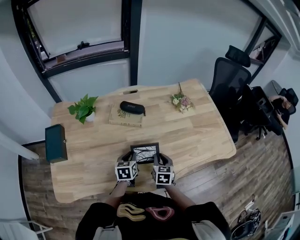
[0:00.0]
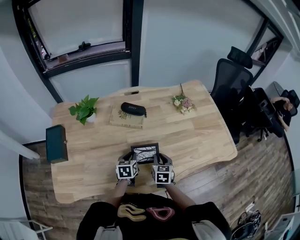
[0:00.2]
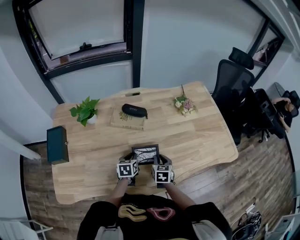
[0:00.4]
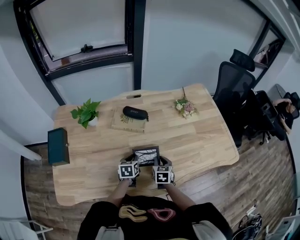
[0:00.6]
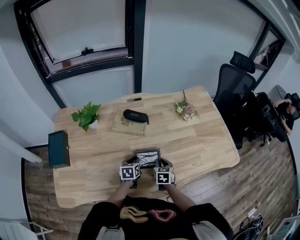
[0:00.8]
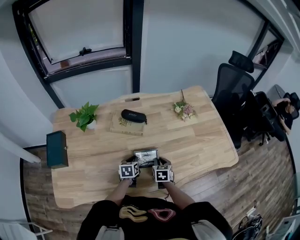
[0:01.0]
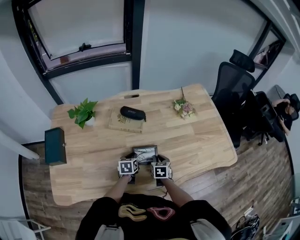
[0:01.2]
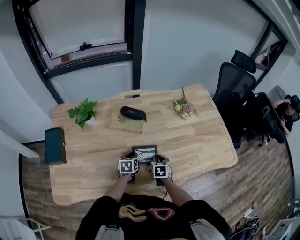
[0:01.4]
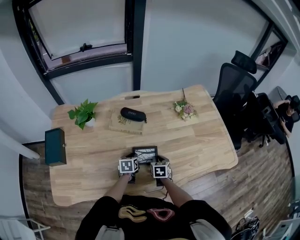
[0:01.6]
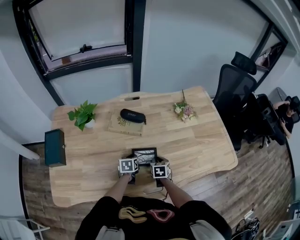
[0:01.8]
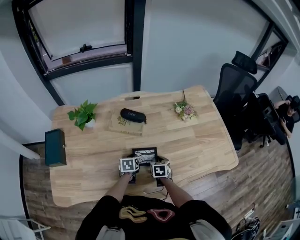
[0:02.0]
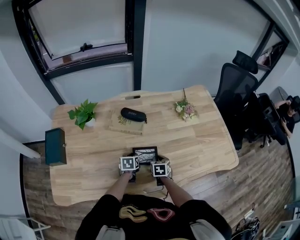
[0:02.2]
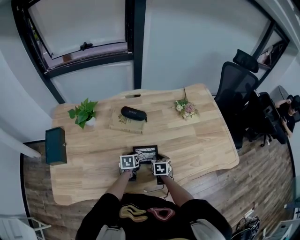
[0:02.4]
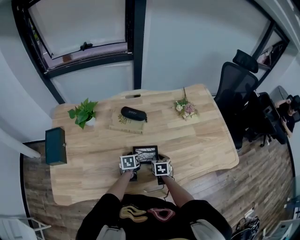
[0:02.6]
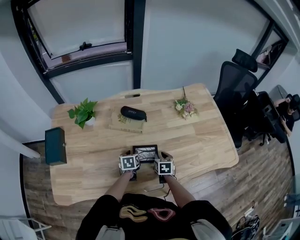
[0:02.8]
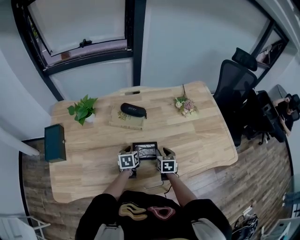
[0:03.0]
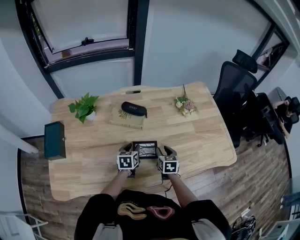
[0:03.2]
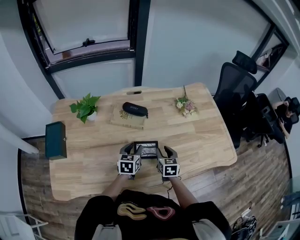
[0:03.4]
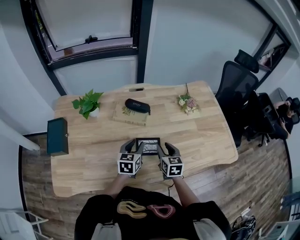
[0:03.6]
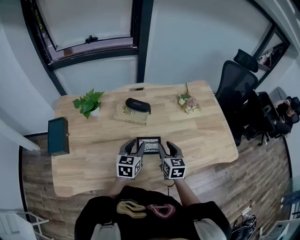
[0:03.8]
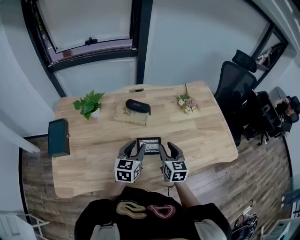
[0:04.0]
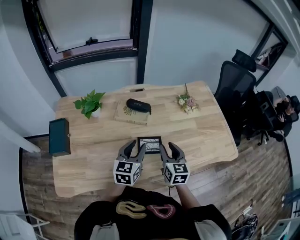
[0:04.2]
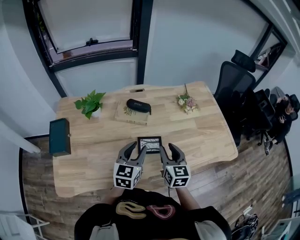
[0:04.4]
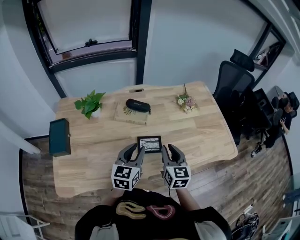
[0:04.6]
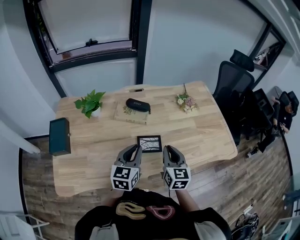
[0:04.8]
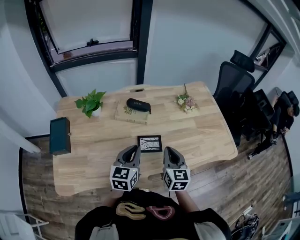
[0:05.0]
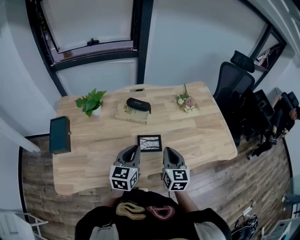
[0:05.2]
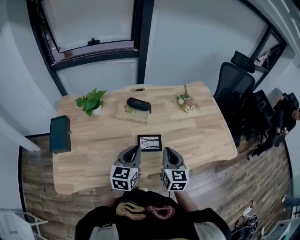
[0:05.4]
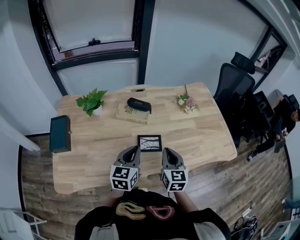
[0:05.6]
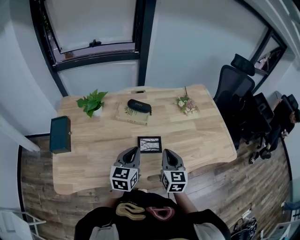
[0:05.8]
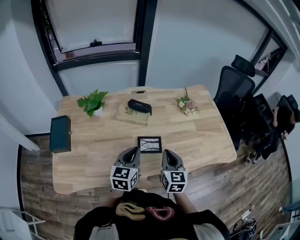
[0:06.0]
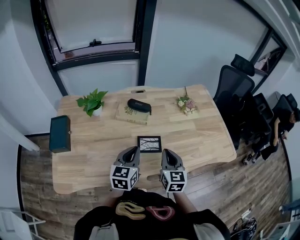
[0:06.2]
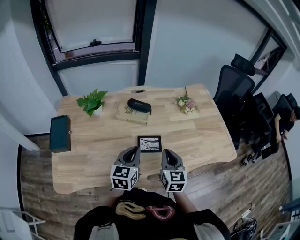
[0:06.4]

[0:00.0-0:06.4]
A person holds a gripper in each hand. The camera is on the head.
0:00.0 to 0:01.6: The grippers both shift downward and forward by roughly 10 cm.
0:01.6 to 0:03.2: Both grippers move upward, some 5 cm. The right gripper opens its fingers. Meanwhile the left gripper opens its fingers.
0:03.2 to 0:04.8: Both grippers move upward and backward, about 20 cm. The right gripper rotates about 20 degrees, and closes up. Meanwhile the left gripper rotates roughly 30 degrees, and closes its fingers.
0:04.8 to 0:06.4: There are only small adjustments of the grippers.

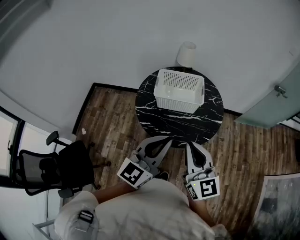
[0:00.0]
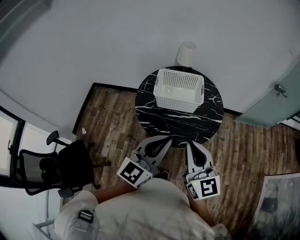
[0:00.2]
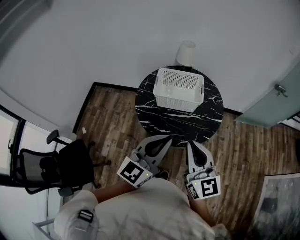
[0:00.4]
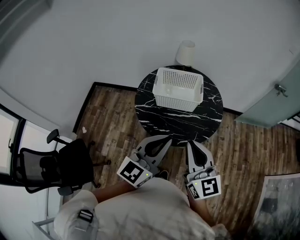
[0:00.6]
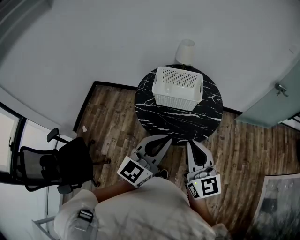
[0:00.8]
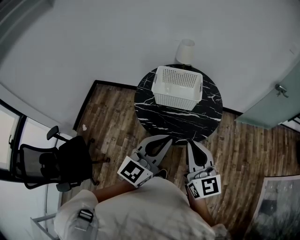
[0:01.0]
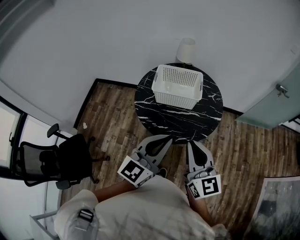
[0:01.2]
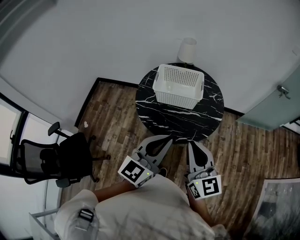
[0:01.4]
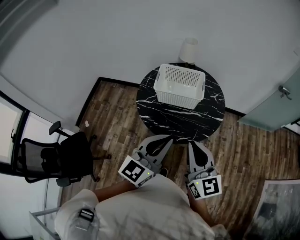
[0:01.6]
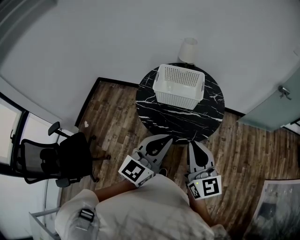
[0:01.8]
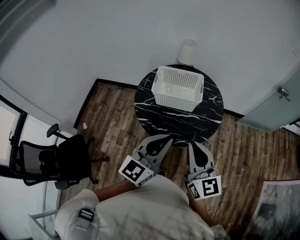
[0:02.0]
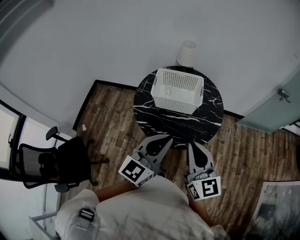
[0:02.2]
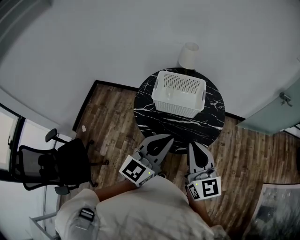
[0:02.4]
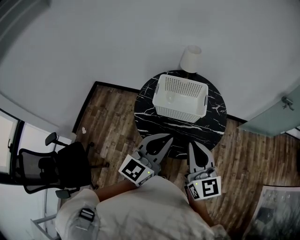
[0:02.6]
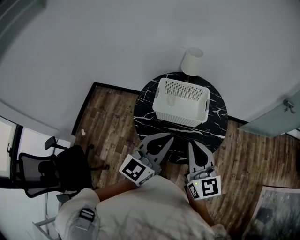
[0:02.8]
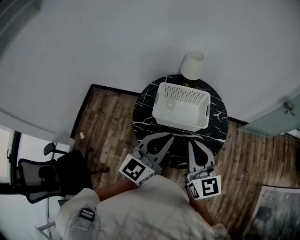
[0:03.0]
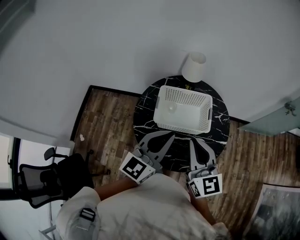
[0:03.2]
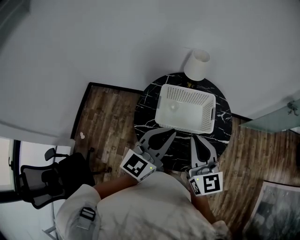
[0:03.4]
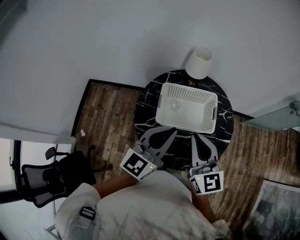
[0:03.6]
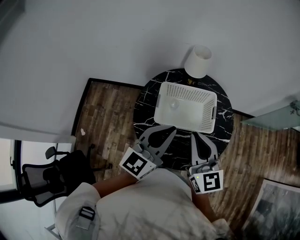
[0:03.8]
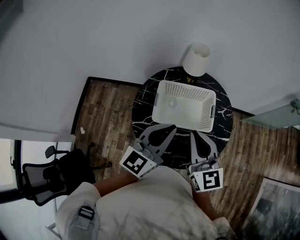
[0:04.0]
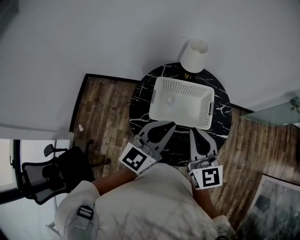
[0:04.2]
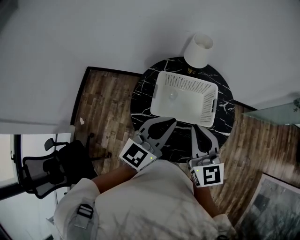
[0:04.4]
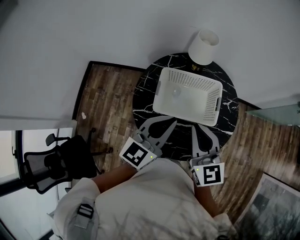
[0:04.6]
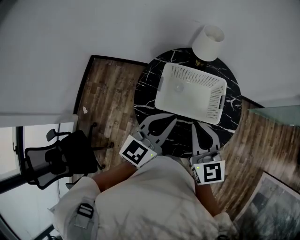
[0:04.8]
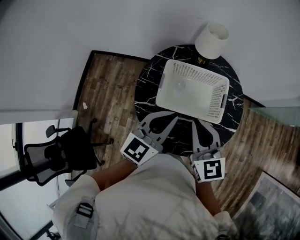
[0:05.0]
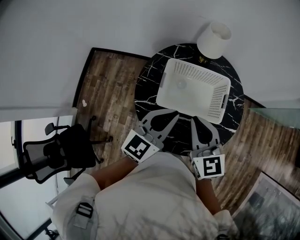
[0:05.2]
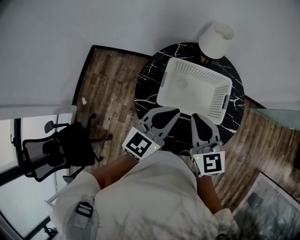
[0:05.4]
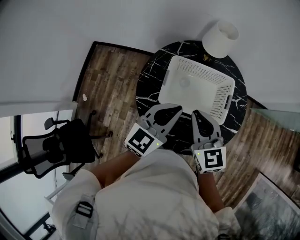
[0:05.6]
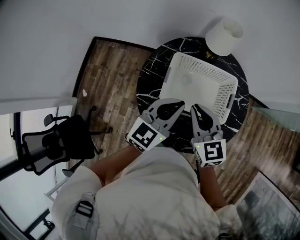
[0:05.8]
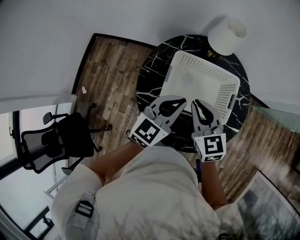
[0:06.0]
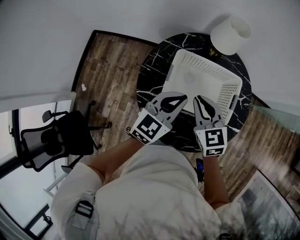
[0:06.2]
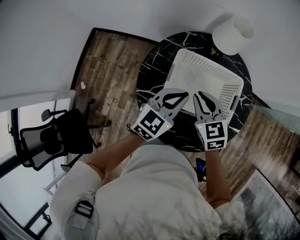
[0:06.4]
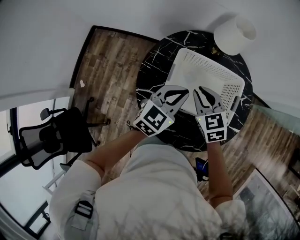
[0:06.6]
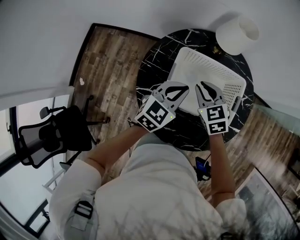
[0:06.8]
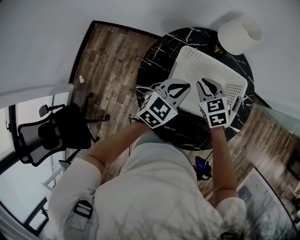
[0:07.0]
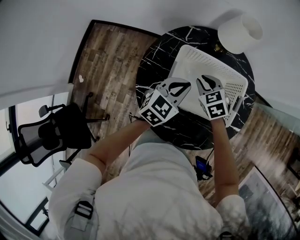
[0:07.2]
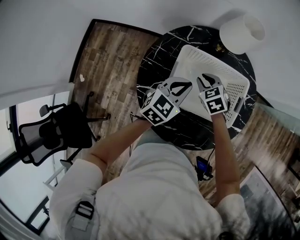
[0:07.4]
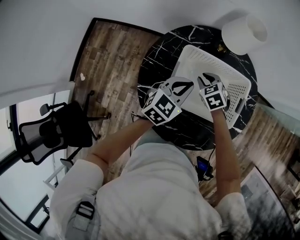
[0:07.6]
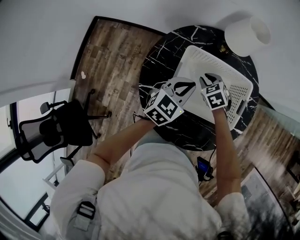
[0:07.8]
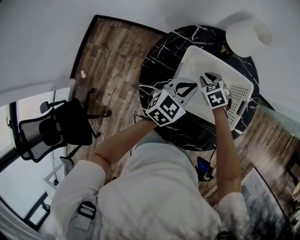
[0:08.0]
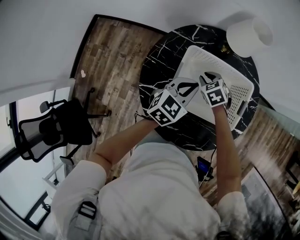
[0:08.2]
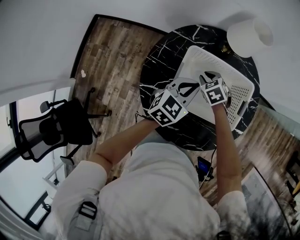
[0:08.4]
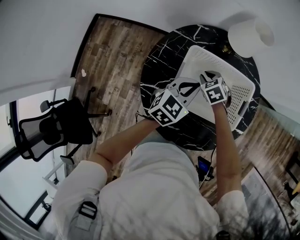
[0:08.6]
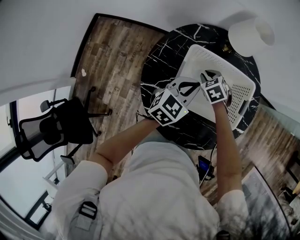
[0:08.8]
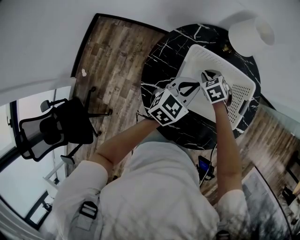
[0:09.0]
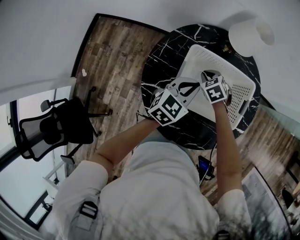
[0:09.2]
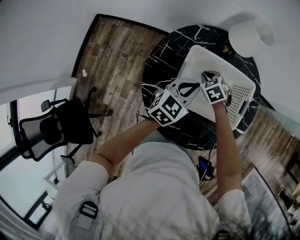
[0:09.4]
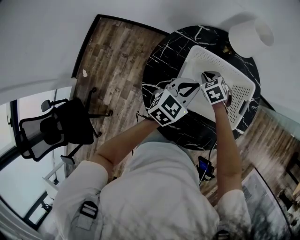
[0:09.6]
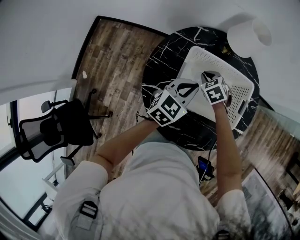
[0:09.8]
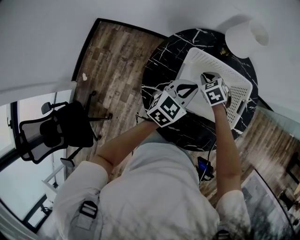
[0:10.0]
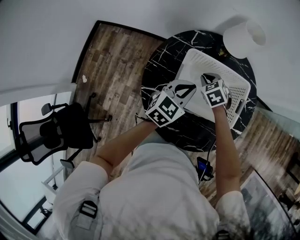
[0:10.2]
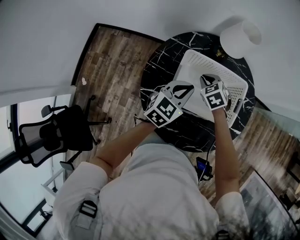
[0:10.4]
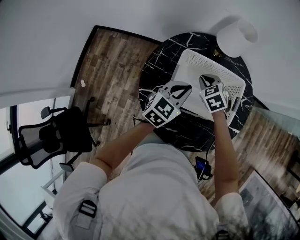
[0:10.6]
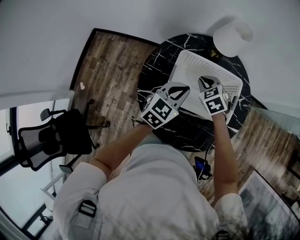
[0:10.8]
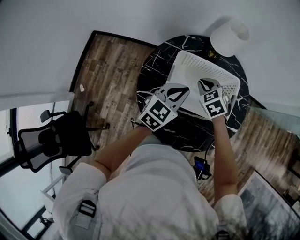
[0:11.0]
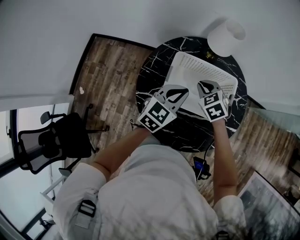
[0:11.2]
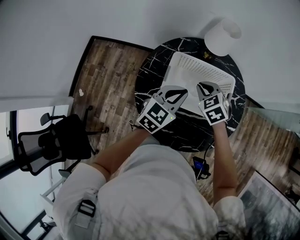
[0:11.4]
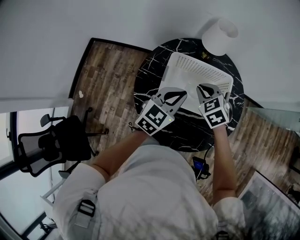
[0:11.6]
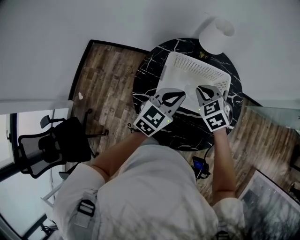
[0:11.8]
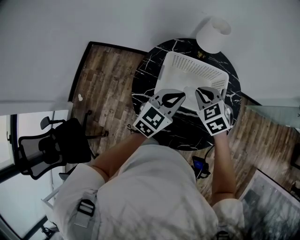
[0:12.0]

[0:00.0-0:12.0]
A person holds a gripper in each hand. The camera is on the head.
0:00.0 to 0:01.6: Both grippers travel together to the right, some 5 cm.
0:01.6 to 0:03.0: The grippers both shift forward by some 20 cm.
0:03.0 to 0:04.4: The grippers both shift forward by about 10 cm.
0:04.4 to 0:06.0: The left gripper moves downward and forward, roughly 15 cm. Meanwhile the right gripper moves downward, forward and to the left, roughly 15 cm, and rotates about 20 degrees.
0:06.0 to 0:07.6: The right gripper is displaced downward and forward by about 25 cm, and tilts its fingers roughly 30 degrees downward. Meanwhile the left gripper heads downward and forward, covering about 15 cm.
0:07.6 to 0:09.0: The grippers stay close to where they were, moving slightly.
0:09.0 to 0:10.4: The right gripper moves upward, approximately 5 cm.
0:10.4 to 0:12.0: The left gripper shifts approximately 10 cm upward and backward. Meanwhile the right gripper is displaced upward and backward by approximately 20 cm.

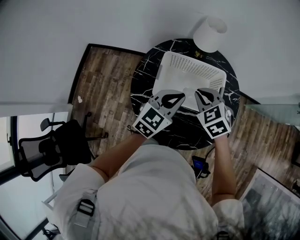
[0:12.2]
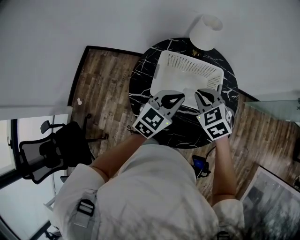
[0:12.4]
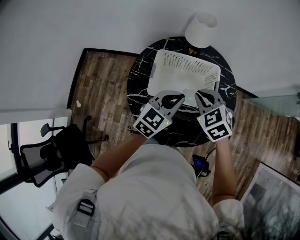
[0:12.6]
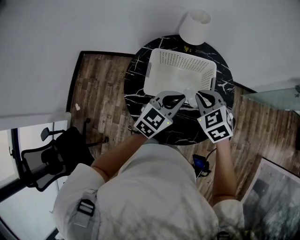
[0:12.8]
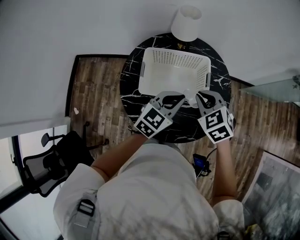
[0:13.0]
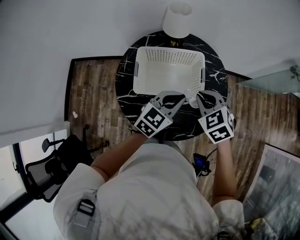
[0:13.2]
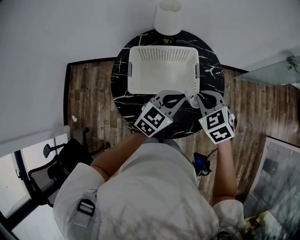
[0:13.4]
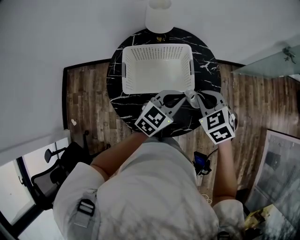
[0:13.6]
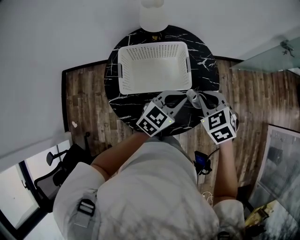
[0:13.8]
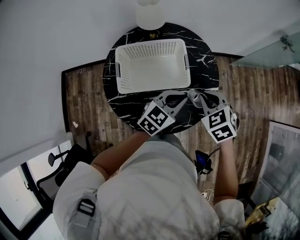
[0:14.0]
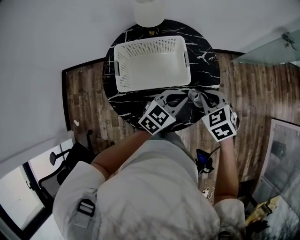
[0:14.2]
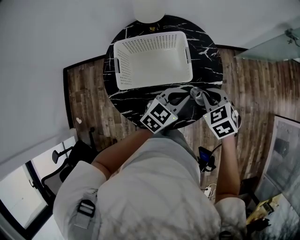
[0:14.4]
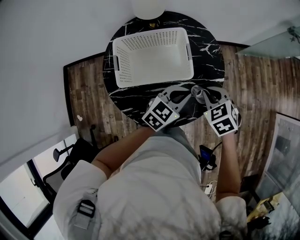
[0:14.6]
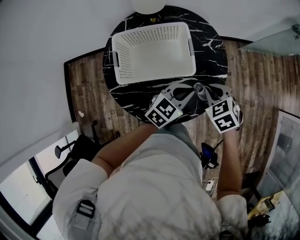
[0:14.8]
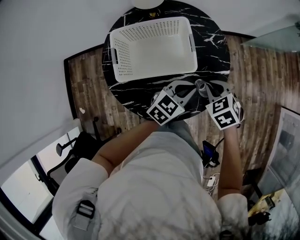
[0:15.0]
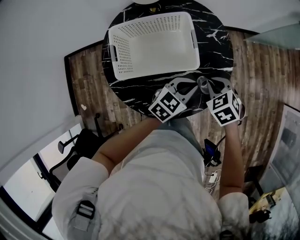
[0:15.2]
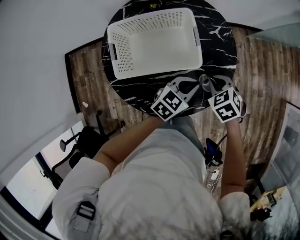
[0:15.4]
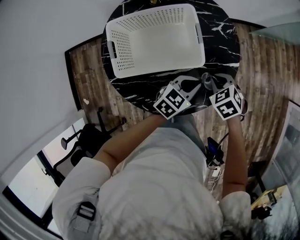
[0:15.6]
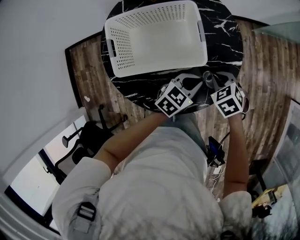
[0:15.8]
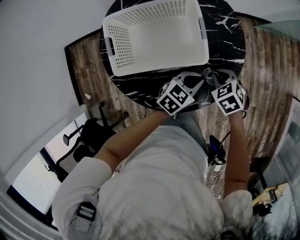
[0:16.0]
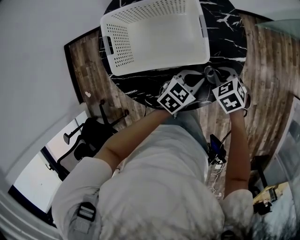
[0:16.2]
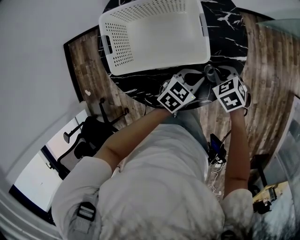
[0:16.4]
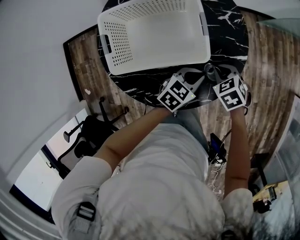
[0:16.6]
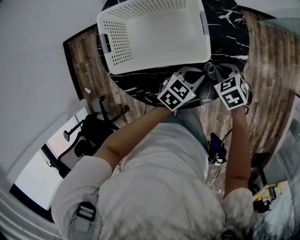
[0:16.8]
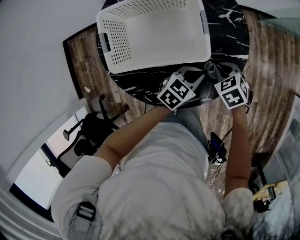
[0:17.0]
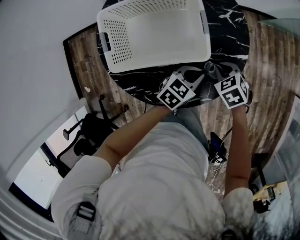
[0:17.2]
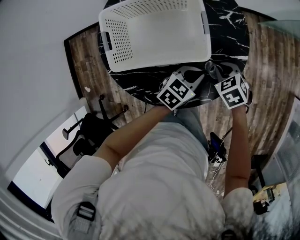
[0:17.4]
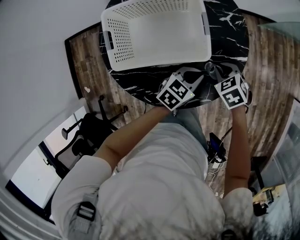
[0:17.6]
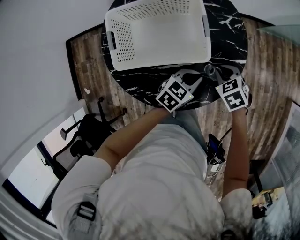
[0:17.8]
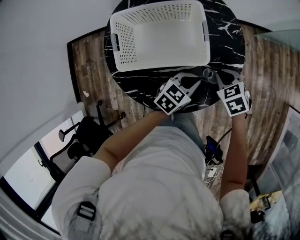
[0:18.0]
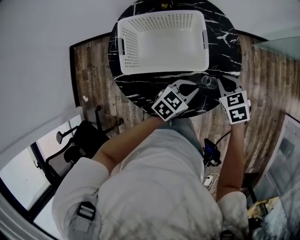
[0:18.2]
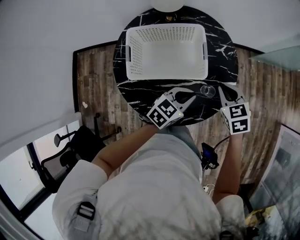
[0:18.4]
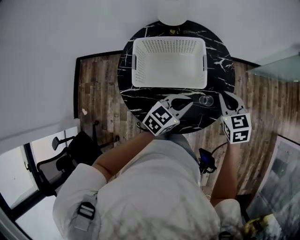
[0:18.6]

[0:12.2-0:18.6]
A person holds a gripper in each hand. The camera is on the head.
0:12.2 to 0:13.8: The two grippers go approximately 20 cm to the right. The left gripper changes its angle by approximately 20 degrees; the right gripper swivels approximately 20 degrees.
0:13.8 to 0:15.4: The two grippers go some 15 cm downward.
0:15.4 to 0:17.0: The grippers both shift downward by approximately 10 cm.
0:17.0 to 0:18.6: Both grippers travel together upward, some 20 cm. The right gripper swivels roughly 30 degrees.
